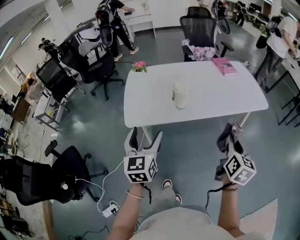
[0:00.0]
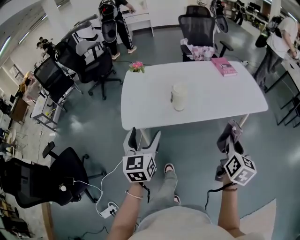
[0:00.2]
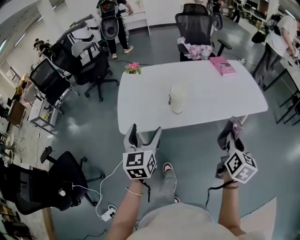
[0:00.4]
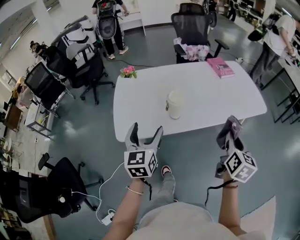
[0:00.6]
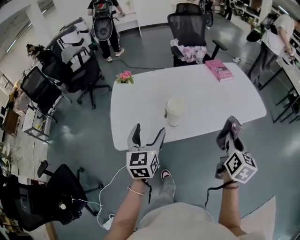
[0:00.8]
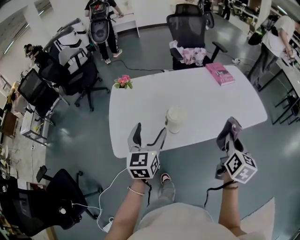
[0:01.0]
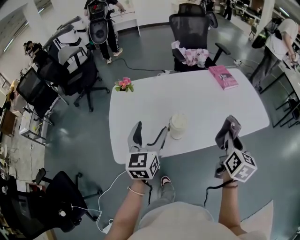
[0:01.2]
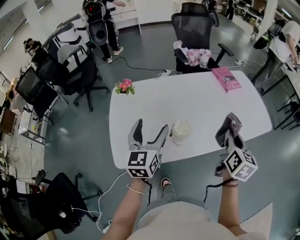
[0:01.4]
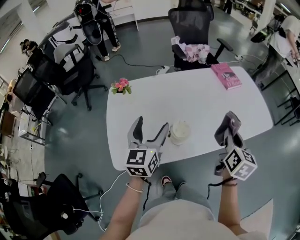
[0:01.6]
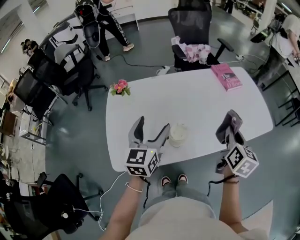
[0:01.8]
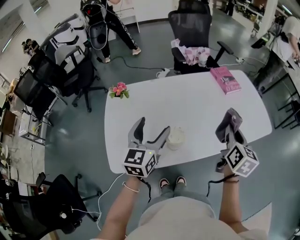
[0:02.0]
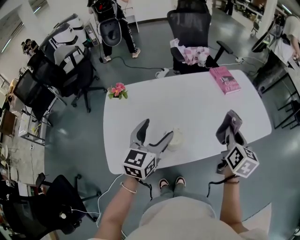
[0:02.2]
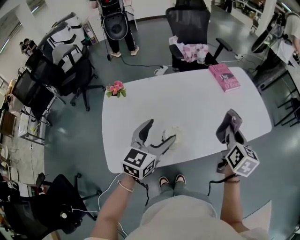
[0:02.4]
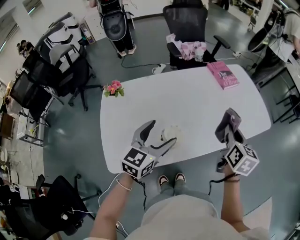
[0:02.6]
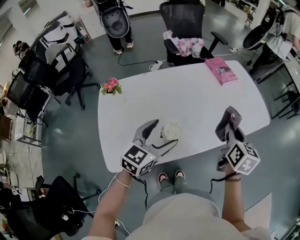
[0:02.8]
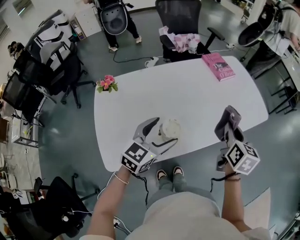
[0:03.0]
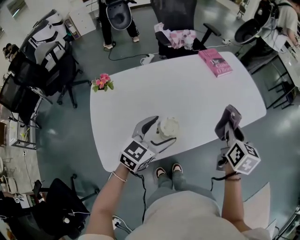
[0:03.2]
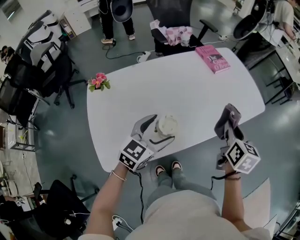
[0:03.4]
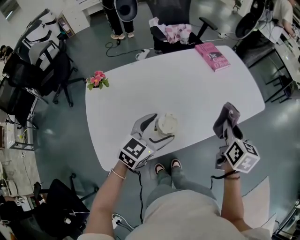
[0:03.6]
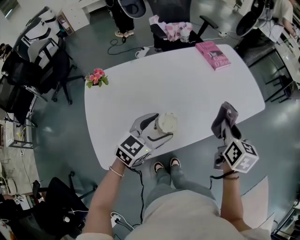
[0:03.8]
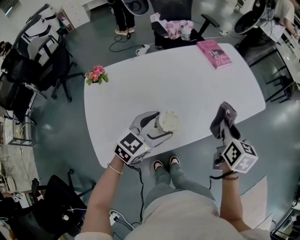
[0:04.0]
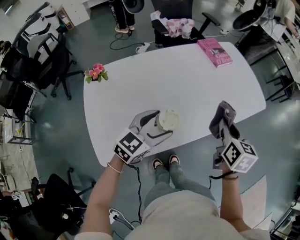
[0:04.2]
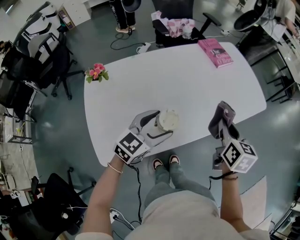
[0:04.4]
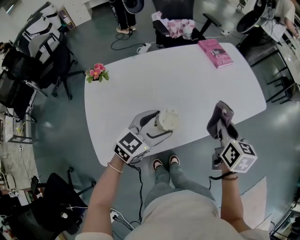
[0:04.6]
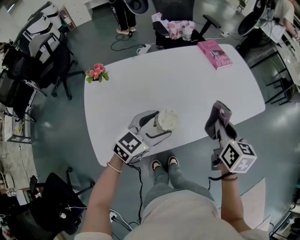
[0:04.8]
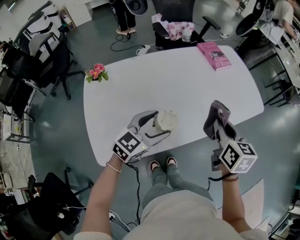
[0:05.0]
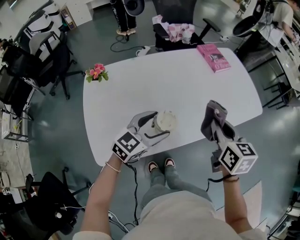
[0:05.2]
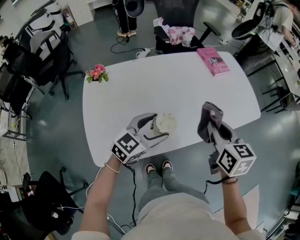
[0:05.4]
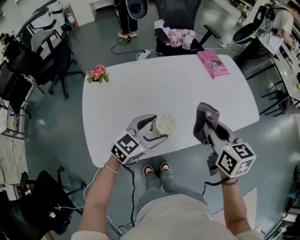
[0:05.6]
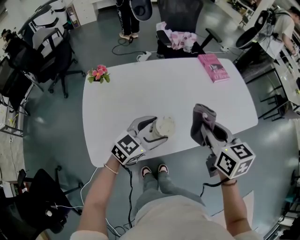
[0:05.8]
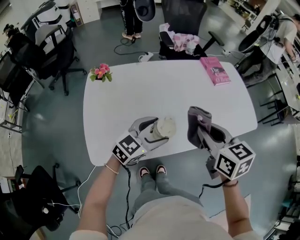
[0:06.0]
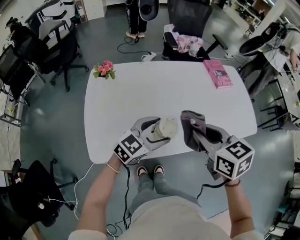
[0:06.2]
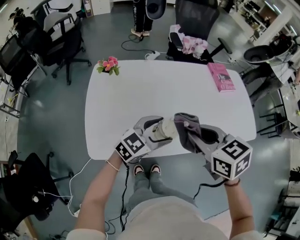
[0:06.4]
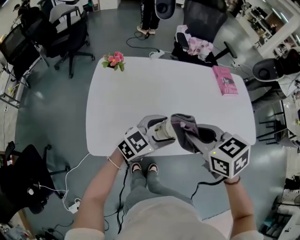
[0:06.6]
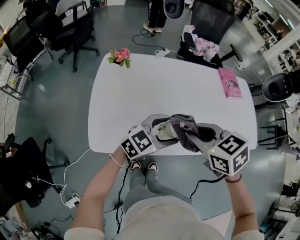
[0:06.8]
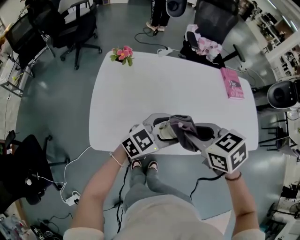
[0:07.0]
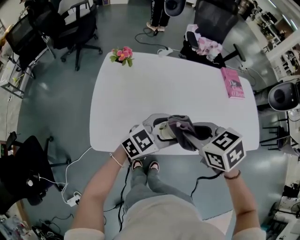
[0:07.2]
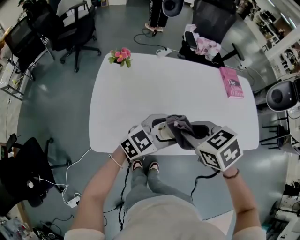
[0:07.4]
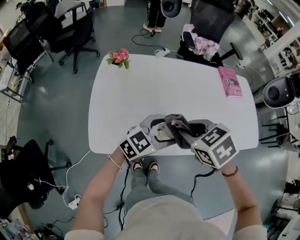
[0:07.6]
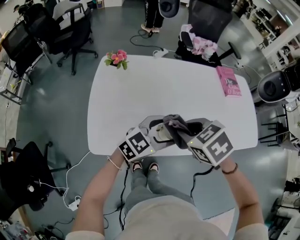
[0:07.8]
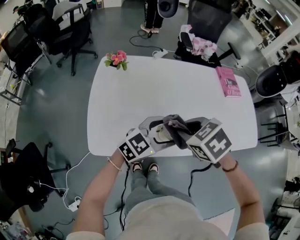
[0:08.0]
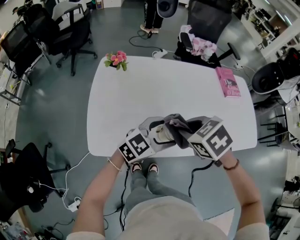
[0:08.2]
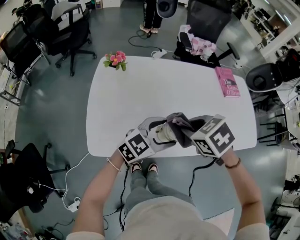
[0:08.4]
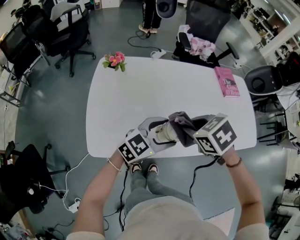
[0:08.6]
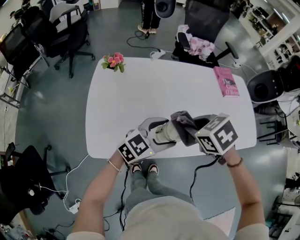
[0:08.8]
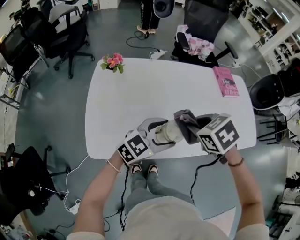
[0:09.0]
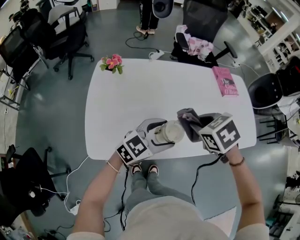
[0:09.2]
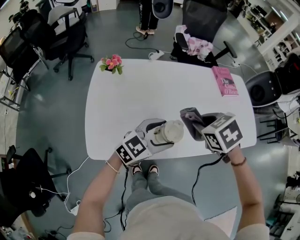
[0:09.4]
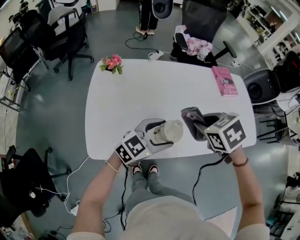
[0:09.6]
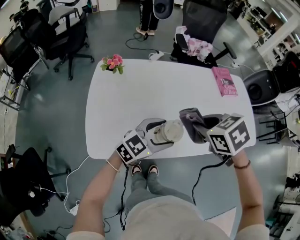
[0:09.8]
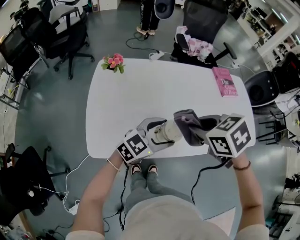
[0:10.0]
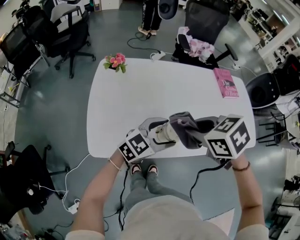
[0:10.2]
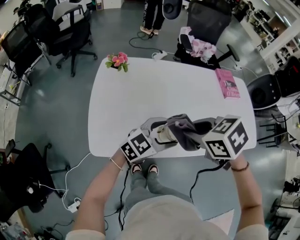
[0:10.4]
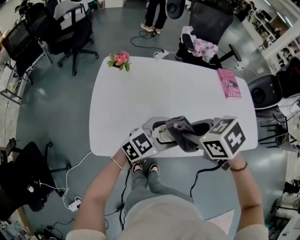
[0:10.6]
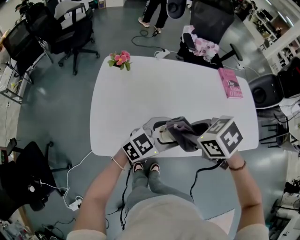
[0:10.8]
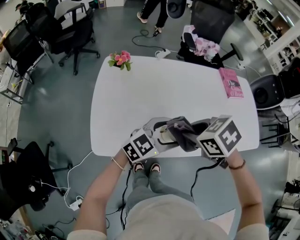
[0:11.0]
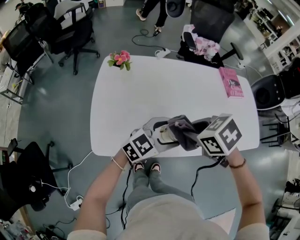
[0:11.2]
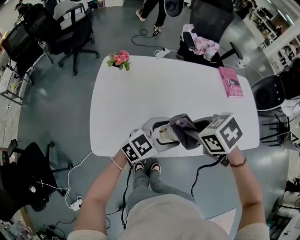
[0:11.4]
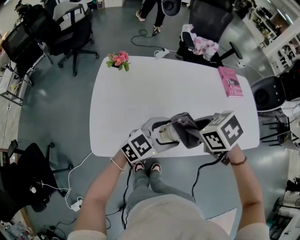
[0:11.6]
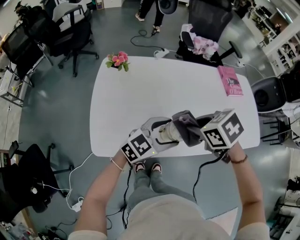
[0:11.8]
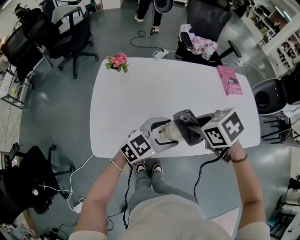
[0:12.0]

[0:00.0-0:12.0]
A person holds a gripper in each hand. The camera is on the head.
0:00.0 to 0:01.6: The grippers both shift forward by roughly 30 cm.
0:01.6 to 0:03.0: The left gripper heads to the right and downward, covering approximately 10 cm, and swivels approximately 40 degrees.
0:03.0 to 0:04.4: The grippers make only small movements.
0:04.4 to 0:06.0: The right gripper goes roughly 10 cm to the left and upward, and changes its angle by roughly 30 degrees.
0:06.0 to 0:07.6: The right gripper moves to the left and downward, some 10 cm, and rotates about 40 degrees.
0:07.6 to 0:09.0: The right gripper ends up about 5 cm from where it was.
0:09.0 to 0:10.4: The right gripper ends up approximately 5 cm from where it was.
0:10.4 to 0:12.0: The right gripper ends up approximately 5 cm from where it was.

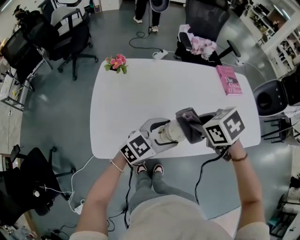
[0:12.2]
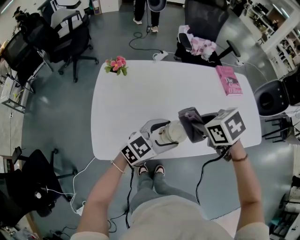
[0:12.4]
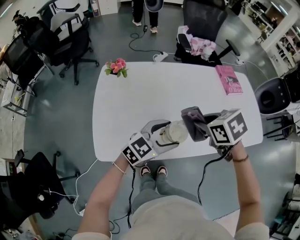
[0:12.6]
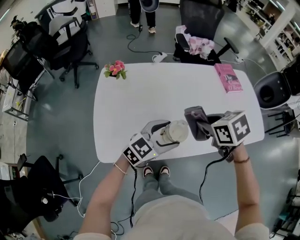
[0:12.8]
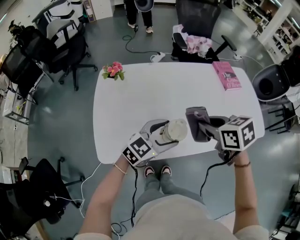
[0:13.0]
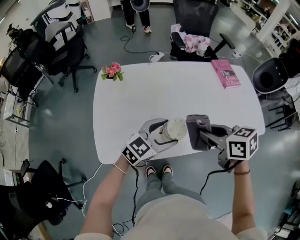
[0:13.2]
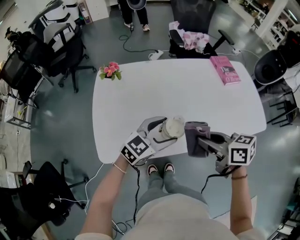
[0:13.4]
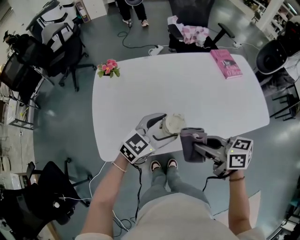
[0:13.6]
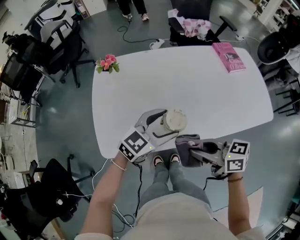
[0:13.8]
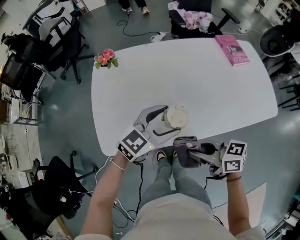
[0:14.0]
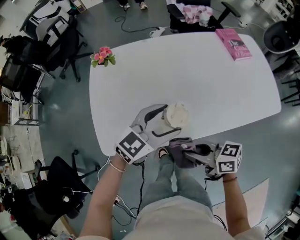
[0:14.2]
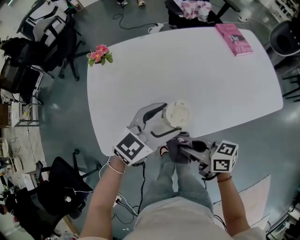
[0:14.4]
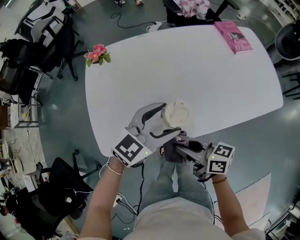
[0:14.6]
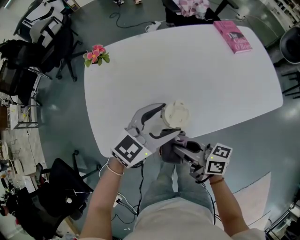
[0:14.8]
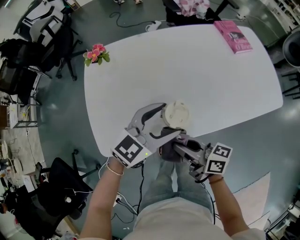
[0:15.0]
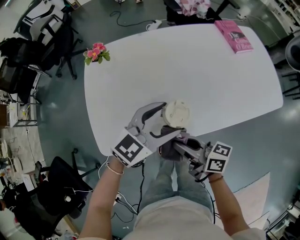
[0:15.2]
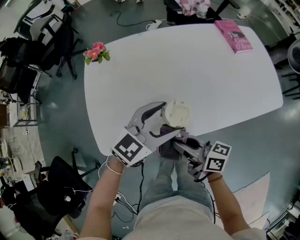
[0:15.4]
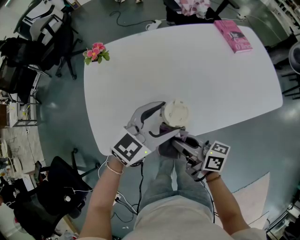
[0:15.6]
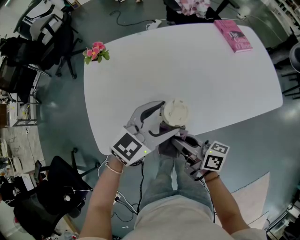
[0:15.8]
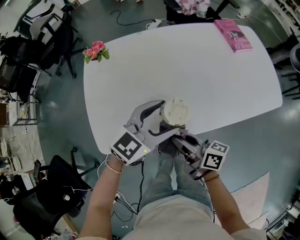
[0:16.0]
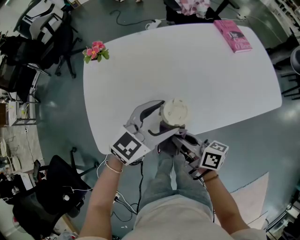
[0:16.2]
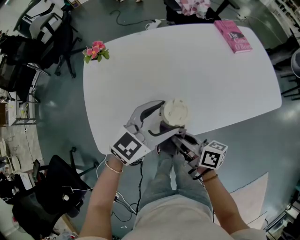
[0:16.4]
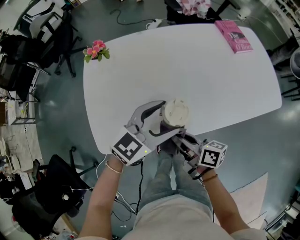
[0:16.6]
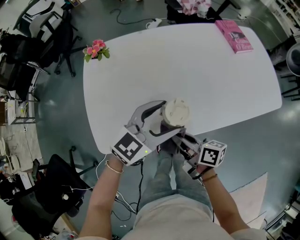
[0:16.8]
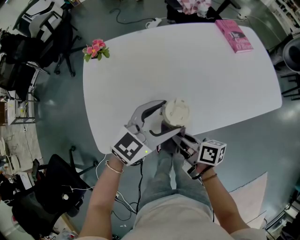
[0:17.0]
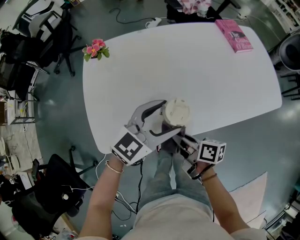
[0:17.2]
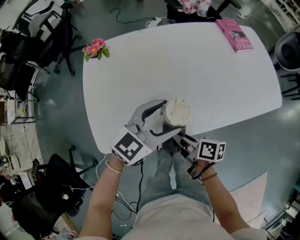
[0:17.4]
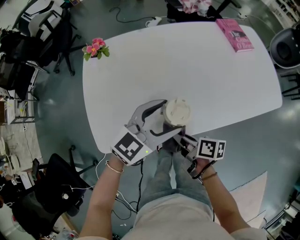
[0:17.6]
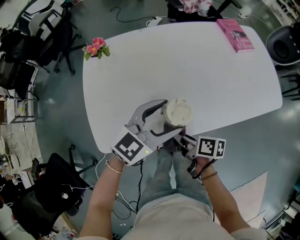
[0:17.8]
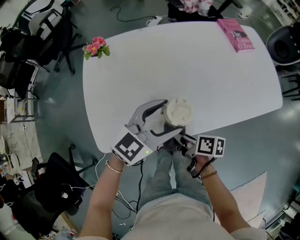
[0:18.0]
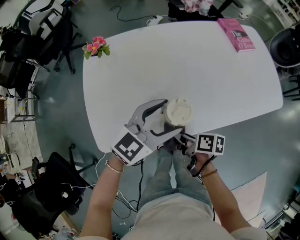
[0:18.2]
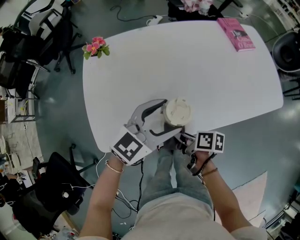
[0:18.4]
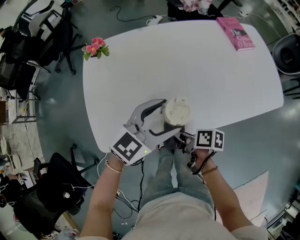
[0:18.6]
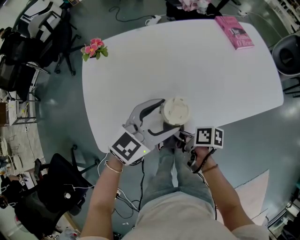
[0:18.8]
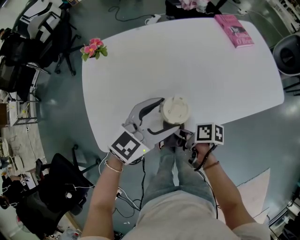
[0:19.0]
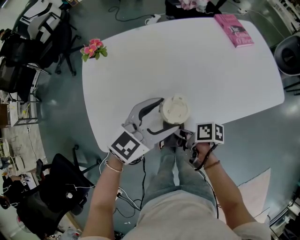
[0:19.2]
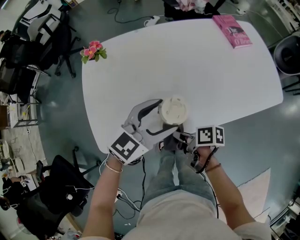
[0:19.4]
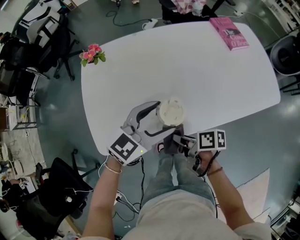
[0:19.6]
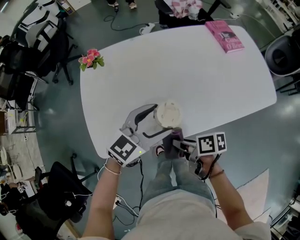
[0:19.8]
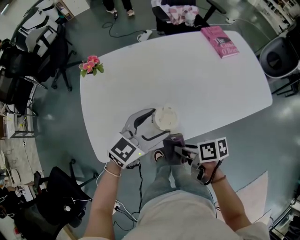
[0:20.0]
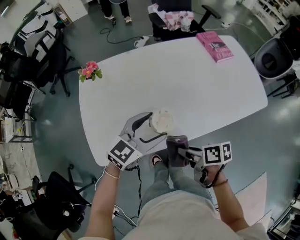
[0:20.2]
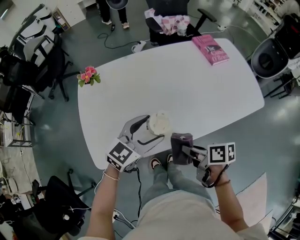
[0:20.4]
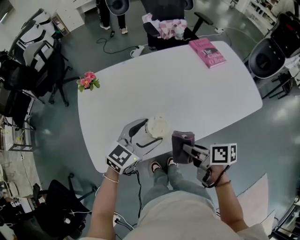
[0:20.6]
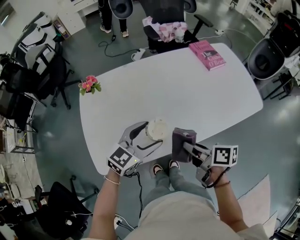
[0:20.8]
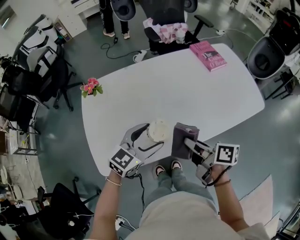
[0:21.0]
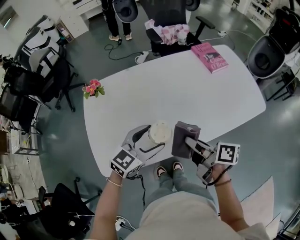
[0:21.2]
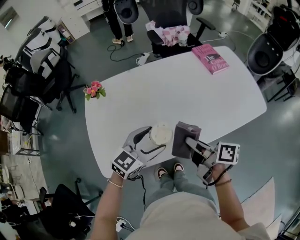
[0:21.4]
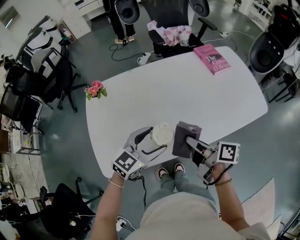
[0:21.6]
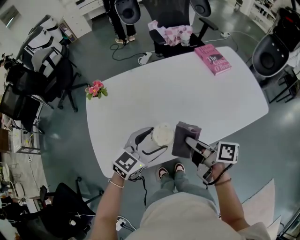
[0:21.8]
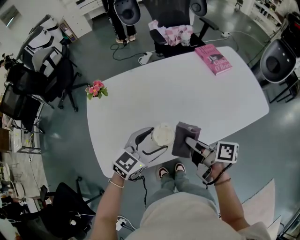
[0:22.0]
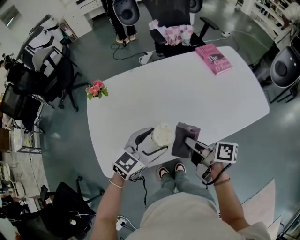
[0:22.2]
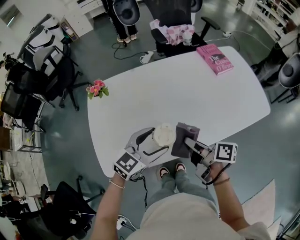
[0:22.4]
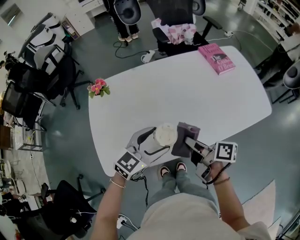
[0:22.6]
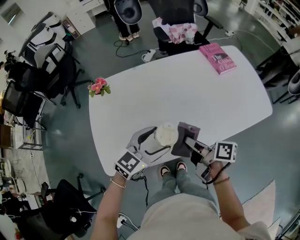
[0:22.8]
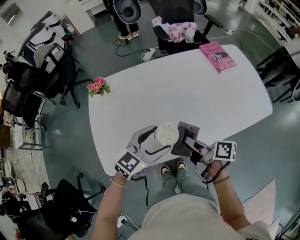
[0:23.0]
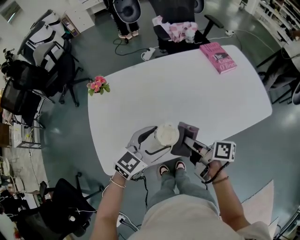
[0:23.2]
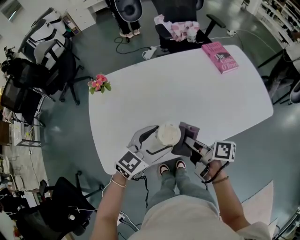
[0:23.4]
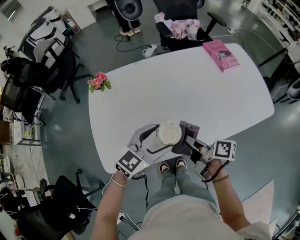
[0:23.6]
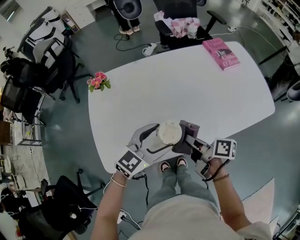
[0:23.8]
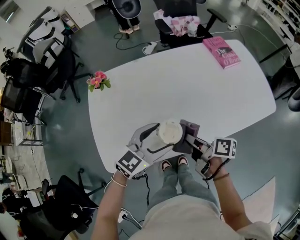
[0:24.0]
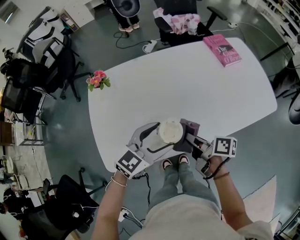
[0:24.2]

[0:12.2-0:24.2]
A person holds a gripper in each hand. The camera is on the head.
0:12.2 to 0:13.8: The right gripper ends up about 15 cm from where it was, and angles its fingers upward, by about 50 degrees.
0:13.8 to 0:15.2: The right gripper moves downward, about 5 cm, and rotates approximately 20 degrees.
0:15.2 to 0:16.6: The grippers make only small movements.
0:16.6 to 0:18.2: The right gripper moves downward, some 5 cm, and rotates approximately 30 degrees.
0:18.2 to 0:19.8: There are only small adjustments of the grippers.
0:19.8 to 0:21.2: The right gripper goes about 15 cm upward, to the right and forward, and turns by roughly 30 degrees.
0:21.2 to 0:22.6: The grippers make only small movements.
0:22.6 to 0:24.2: The grippers move only a little.
